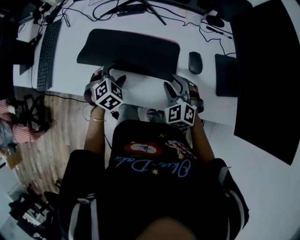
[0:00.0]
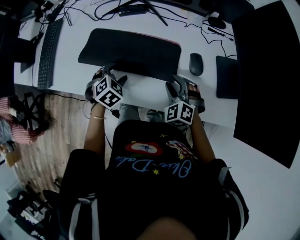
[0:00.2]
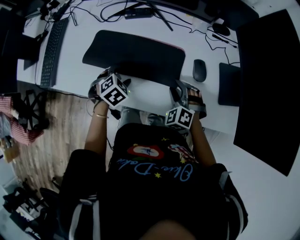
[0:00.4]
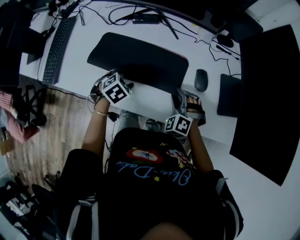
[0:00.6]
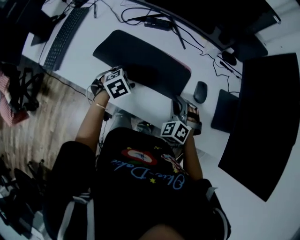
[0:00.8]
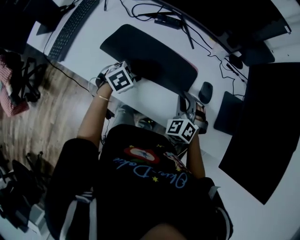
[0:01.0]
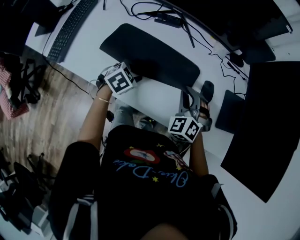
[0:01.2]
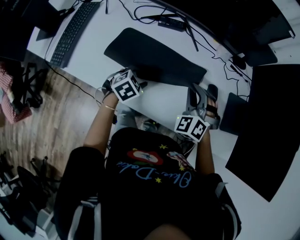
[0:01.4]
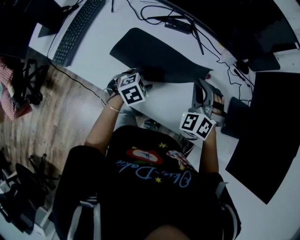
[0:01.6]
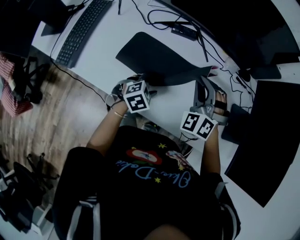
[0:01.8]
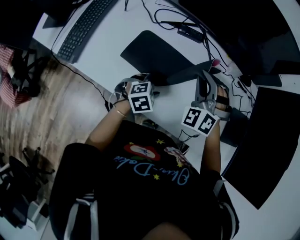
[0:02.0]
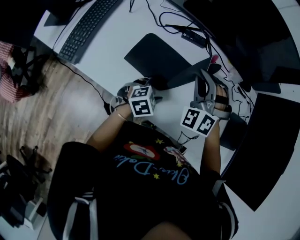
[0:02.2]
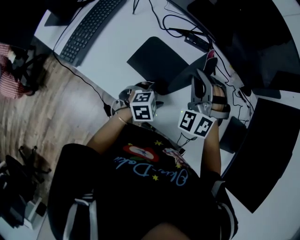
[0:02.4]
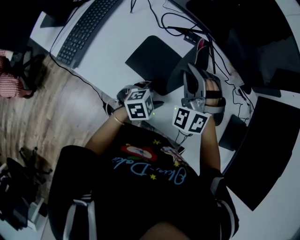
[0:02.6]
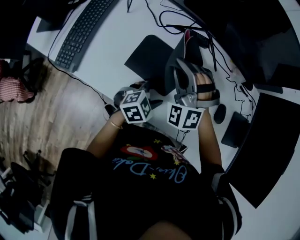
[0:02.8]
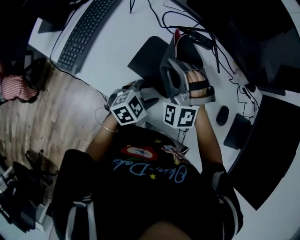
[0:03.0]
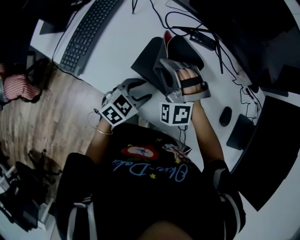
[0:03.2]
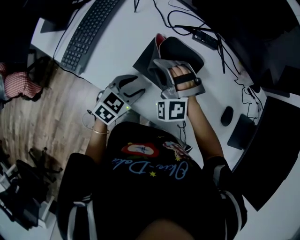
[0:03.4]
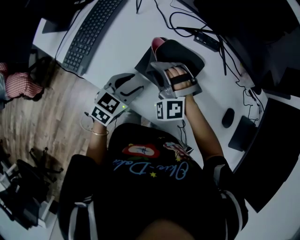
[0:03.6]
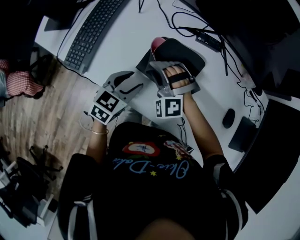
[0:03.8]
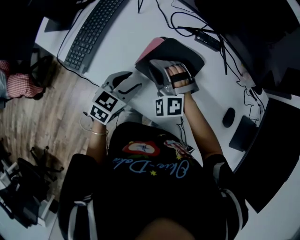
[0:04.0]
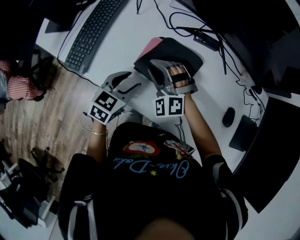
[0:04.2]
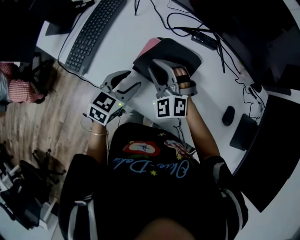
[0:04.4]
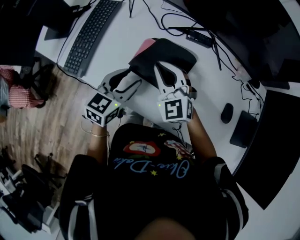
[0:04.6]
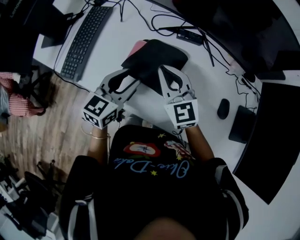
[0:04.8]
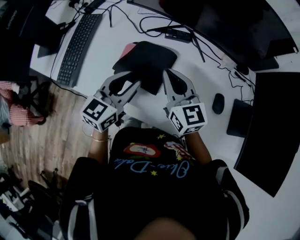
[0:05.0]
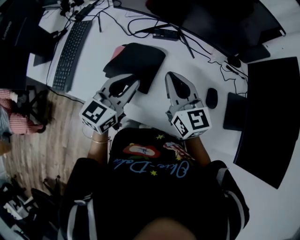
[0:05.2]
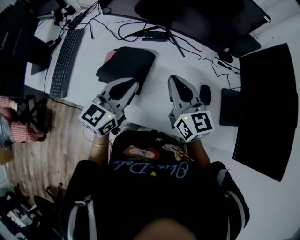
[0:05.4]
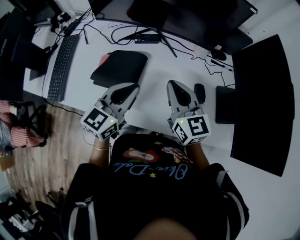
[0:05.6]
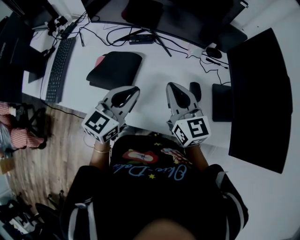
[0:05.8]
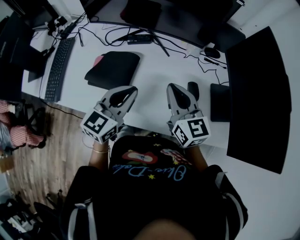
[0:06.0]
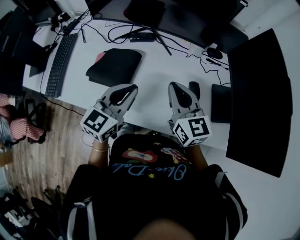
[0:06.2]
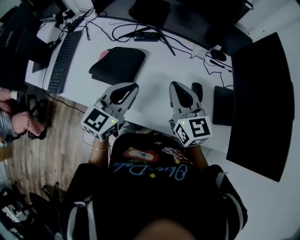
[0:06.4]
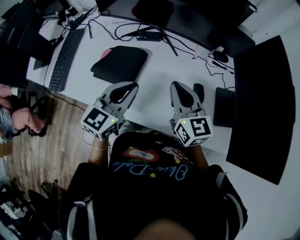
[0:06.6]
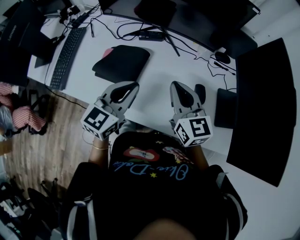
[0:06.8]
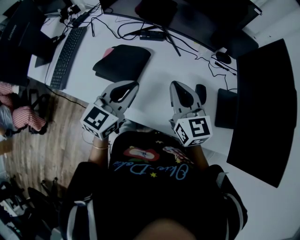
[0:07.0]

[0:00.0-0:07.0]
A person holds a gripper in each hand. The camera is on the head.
0:00.0 to 0:01.4: The left gripper turns by approximately 20 degrees; the right gripper shifts about 10 cm upward and forward, swivels about 20 degrees, and closes its fingers.
0:01.4 to 0:02.8: The right gripper goes about 25 cm to the left, and changes its angle by roughly 30 degrees.
0:02.8 to 0:04.2: The right gripper moves to the left and downward, about 15 cm, while the left gripper is displaced to the left by roughly 15 cm, and swivels some 40 degrees.
0:04.2 to 0:05.6: Both grippers travel together to the right and upward, some 30 cm. The right gripper rotates around the line of its fingers by some 70 degrees, clockwise from behind, and closes up. The left gripper changes its angle by approximately 30 degrees, and closes up.
0:05.6 to 0:07.0: There are only small adjustments of the grippers.

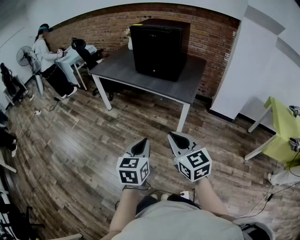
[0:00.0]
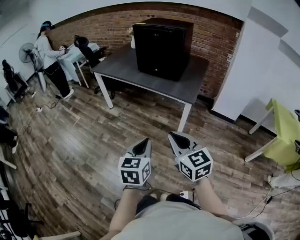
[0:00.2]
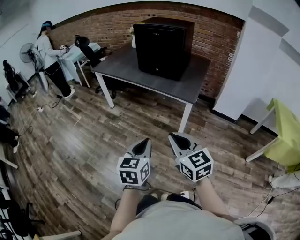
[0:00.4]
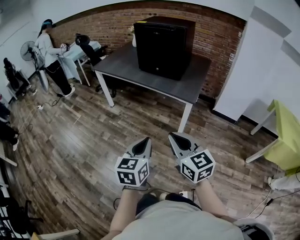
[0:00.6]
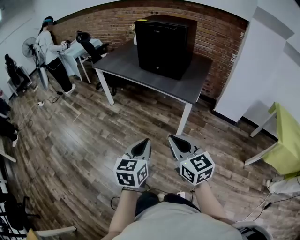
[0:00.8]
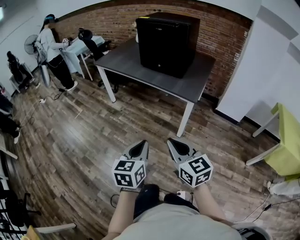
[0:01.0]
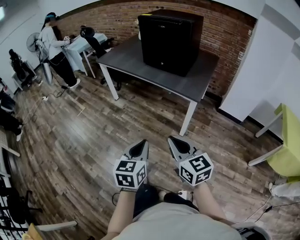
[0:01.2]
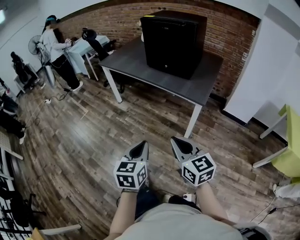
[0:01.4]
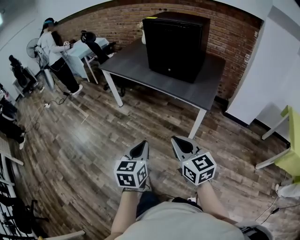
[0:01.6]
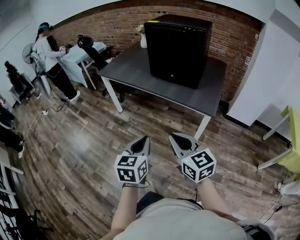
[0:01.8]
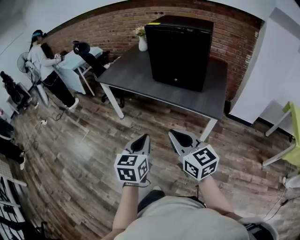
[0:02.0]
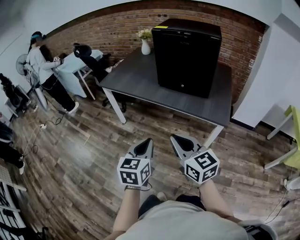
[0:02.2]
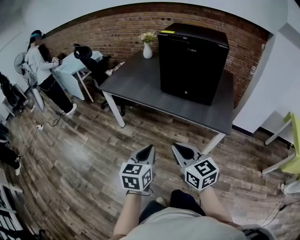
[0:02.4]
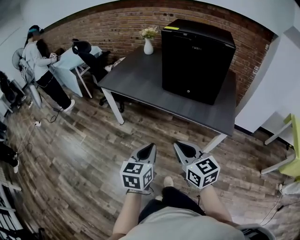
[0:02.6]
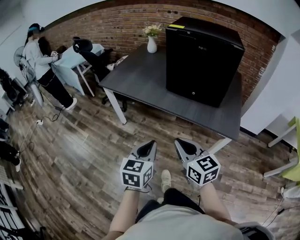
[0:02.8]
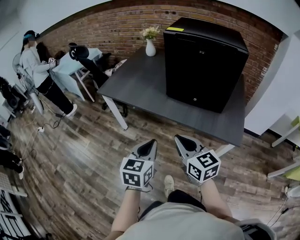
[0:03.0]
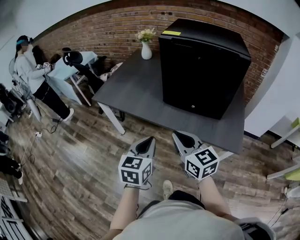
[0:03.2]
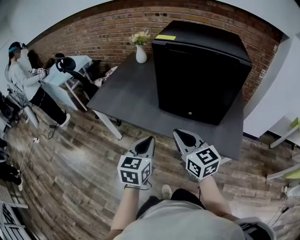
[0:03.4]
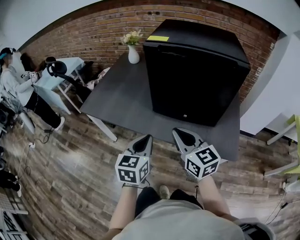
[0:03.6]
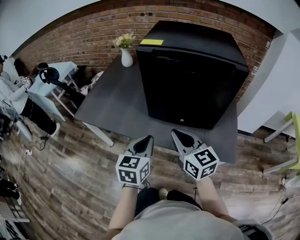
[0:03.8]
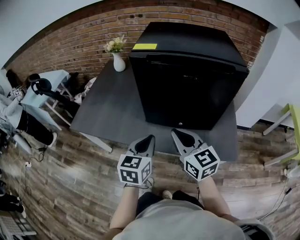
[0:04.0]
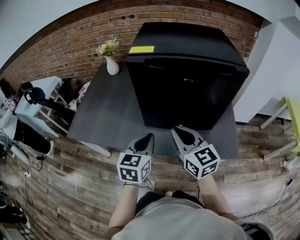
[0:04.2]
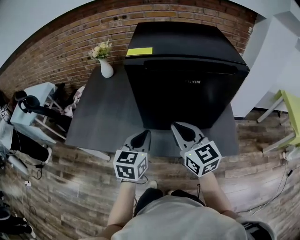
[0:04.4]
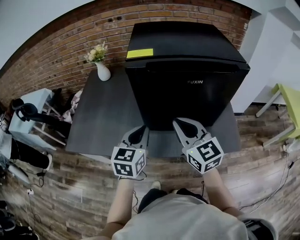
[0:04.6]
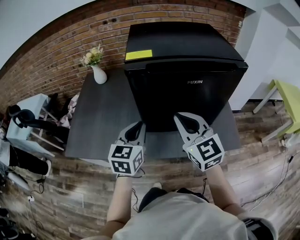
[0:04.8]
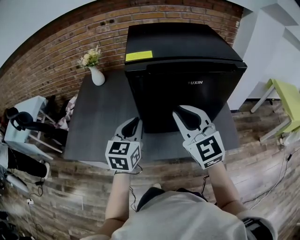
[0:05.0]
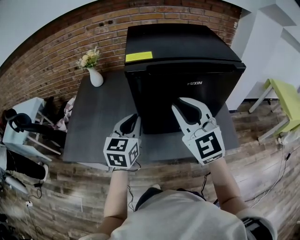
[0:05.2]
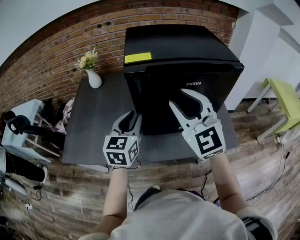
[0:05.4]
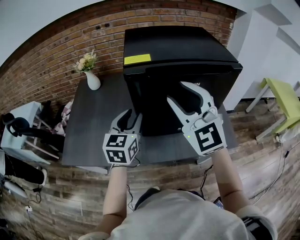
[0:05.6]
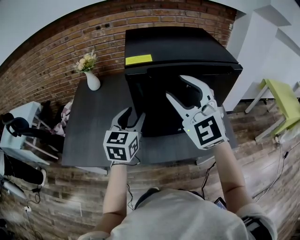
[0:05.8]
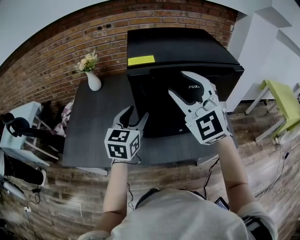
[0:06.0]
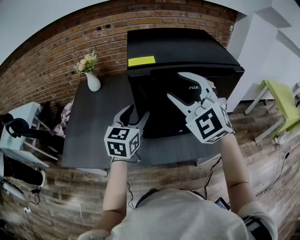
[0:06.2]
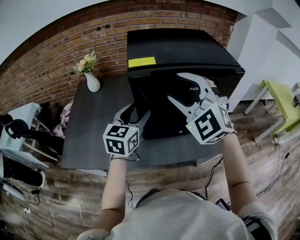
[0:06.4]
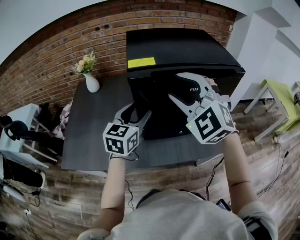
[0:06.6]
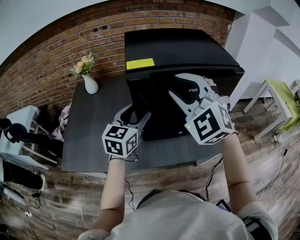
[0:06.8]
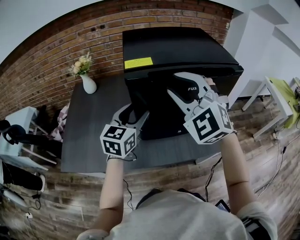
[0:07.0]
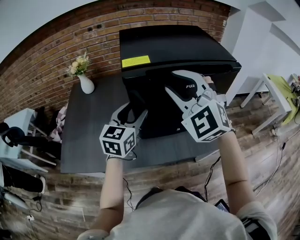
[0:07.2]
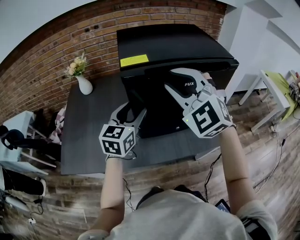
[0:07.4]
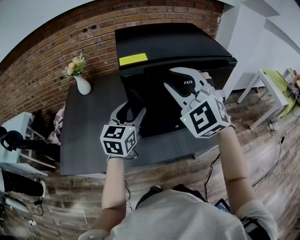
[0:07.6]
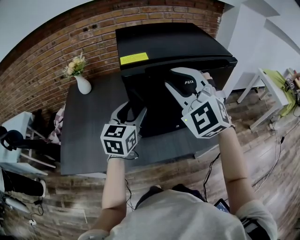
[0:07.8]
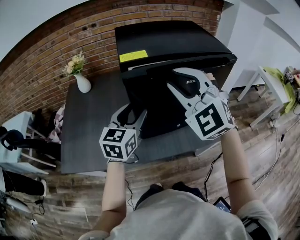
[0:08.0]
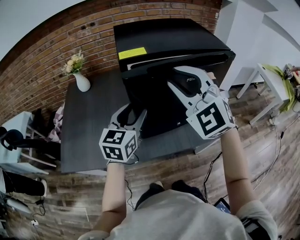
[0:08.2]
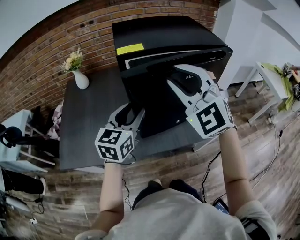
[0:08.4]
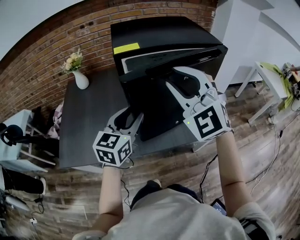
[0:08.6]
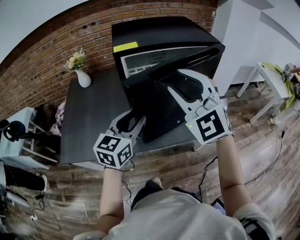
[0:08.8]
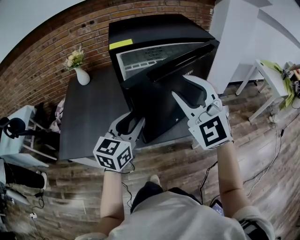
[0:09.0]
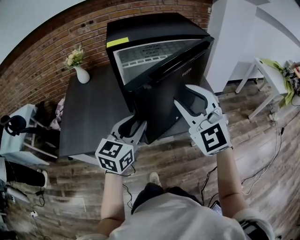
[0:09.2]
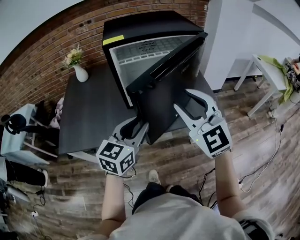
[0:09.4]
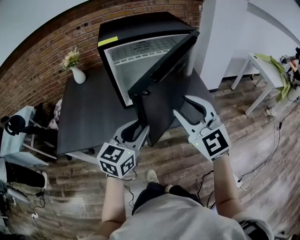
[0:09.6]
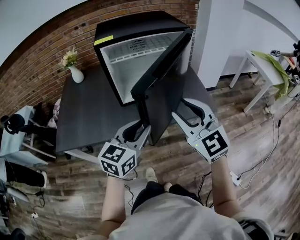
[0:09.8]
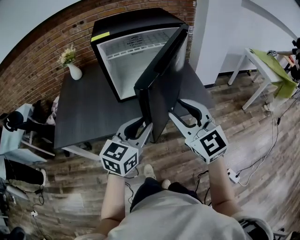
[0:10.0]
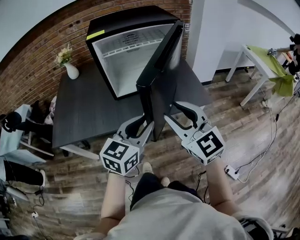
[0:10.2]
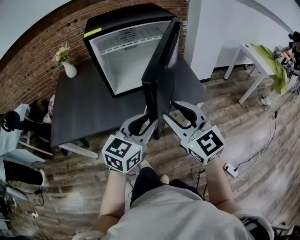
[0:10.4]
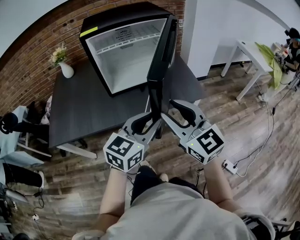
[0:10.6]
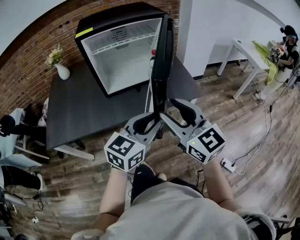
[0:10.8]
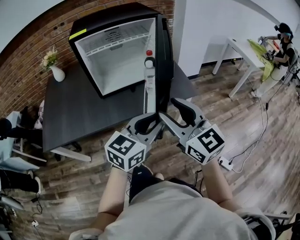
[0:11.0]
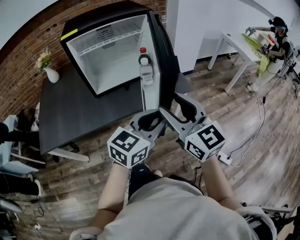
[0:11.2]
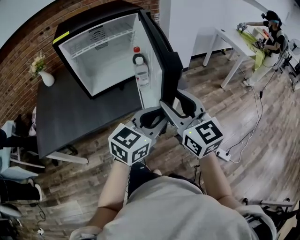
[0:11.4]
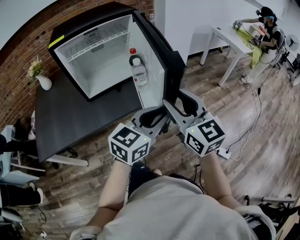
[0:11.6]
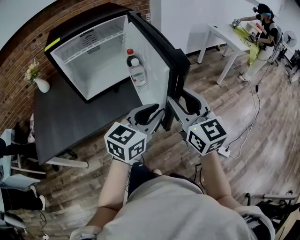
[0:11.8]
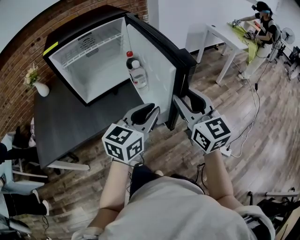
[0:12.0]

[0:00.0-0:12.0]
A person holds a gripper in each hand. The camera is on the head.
0:00.0 to 0:01.6: Both grippers travel together forward, approximately 10 cm.
0:01.6 to 0:03.0: The pair of grippers is taken forward, about 40 cm.
0:03.0 to 0:04.4: The grippers both shift forward by roughly 30 cm. The left gripper turns by some 20 degrees. Meanwhile the right gripper rotates roughly 20 degrees.
0:04.4 to 0:06.0: The right gripper shifts roughly 15 cm upward and forward, twists about 50 degrees counterclockwise, seen from behind, and opens. The left gripper is displaced forward and upward by about 10 cm, and opens.
0:06.0 to 0:07.6: The right gripper closes up.
0:07.6 to 0:09.0: The left gripper moves backward, some 15 cm, while the right gripper shifts roughly 15 cm backward and to the right.
0:09.0 to 0:10.4: The left gripper heads to the right and backward, covering about 25 cm; the right gripper shifts about 20 cm backward, to the right and downward, and rotates approximately 30 degrees.
0:10.4 to 0:12.0: Both grippers travel together to the right, approximately 15 cm. The right gripper changes its angle by some 30 degrees.

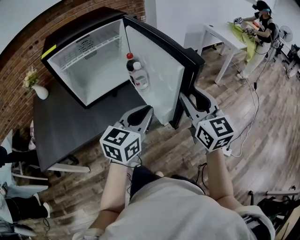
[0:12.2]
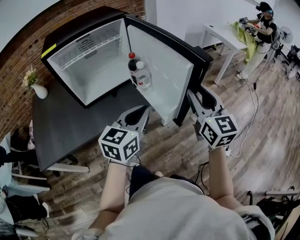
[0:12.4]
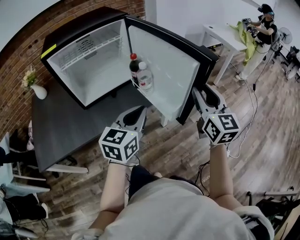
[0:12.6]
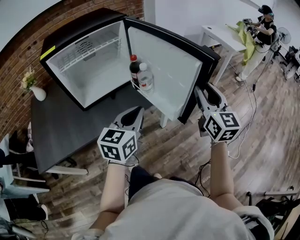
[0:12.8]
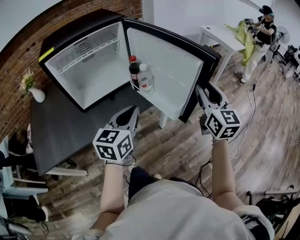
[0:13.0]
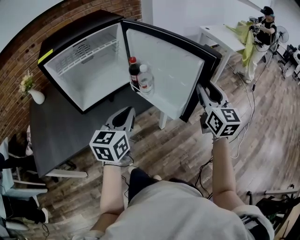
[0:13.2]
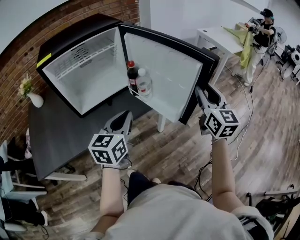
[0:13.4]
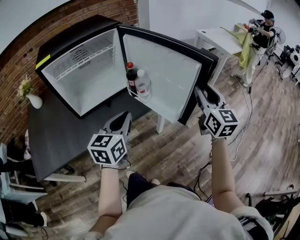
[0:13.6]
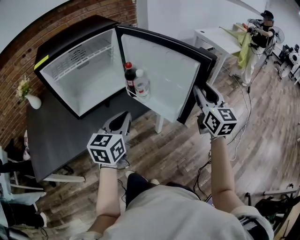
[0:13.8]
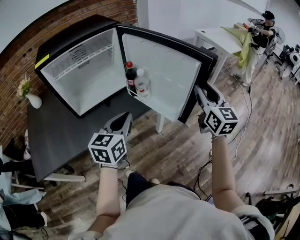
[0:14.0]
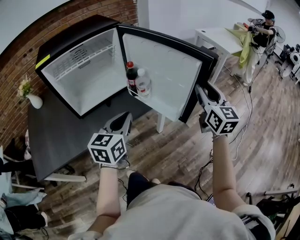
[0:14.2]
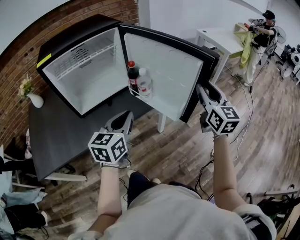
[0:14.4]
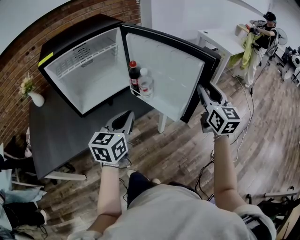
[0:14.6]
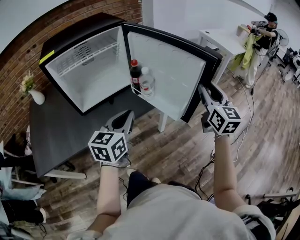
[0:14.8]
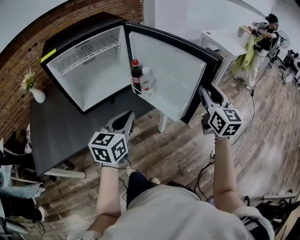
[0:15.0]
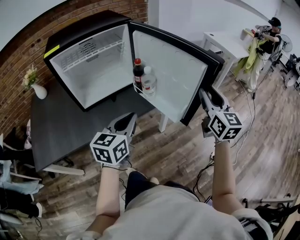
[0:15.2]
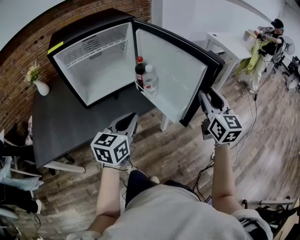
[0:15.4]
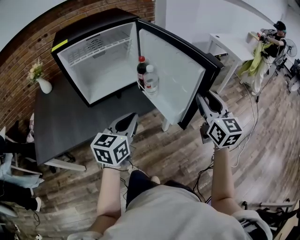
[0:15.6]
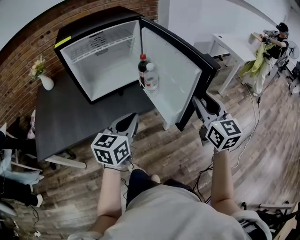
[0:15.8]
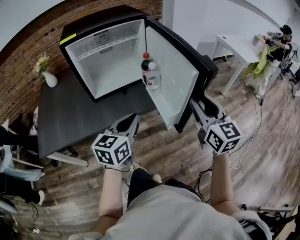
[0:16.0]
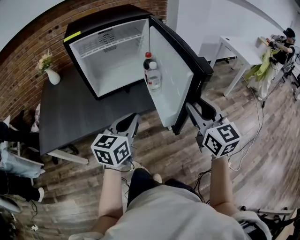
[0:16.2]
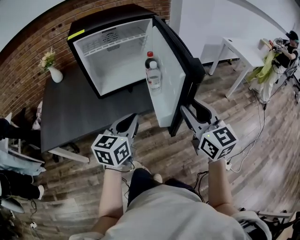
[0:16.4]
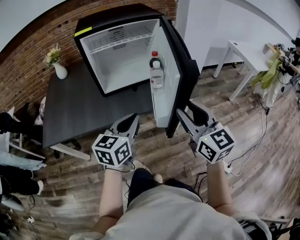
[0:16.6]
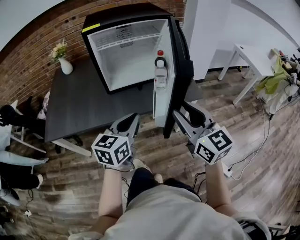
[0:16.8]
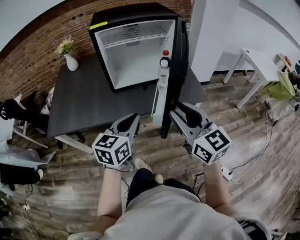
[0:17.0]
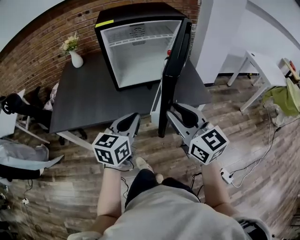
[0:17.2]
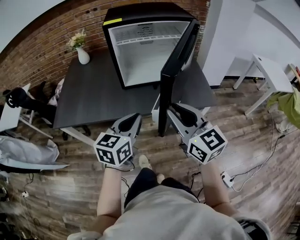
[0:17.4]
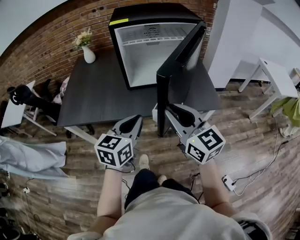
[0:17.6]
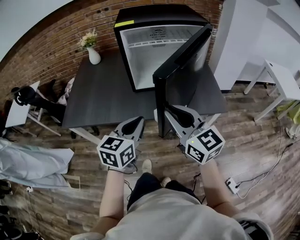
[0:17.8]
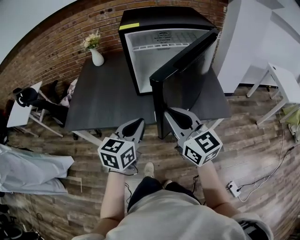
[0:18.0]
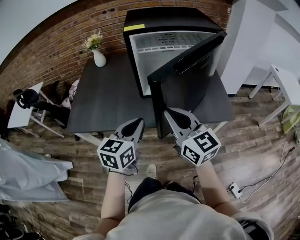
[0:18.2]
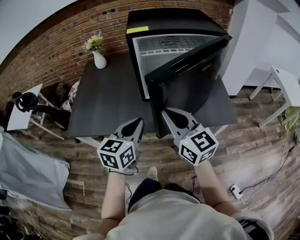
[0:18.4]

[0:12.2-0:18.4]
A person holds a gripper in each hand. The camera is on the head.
0:12.2 to 0:13.8: The left gripper is displaced to the left by about 5 cm, while the right gripper travels to the right and forward by approximately 10 cm.
0:13.8 to 0:15.4: There are only small adjustments of the grippers.
0:15.4 to 0:16.8: The right gripper shifts about 20 cm to the left and backward, and rotates about 30 degrees, while the left gripper shifts some 10 cm to the left.
0:16.8 to 0:18.4: The grippers both shift to the left and forward by some 20 cm. The right gripper closes.
